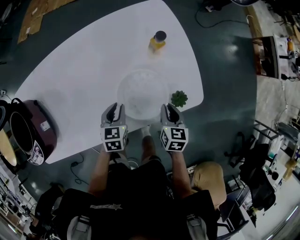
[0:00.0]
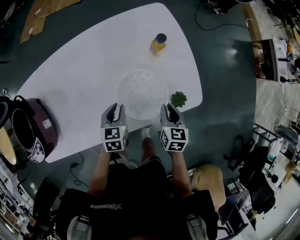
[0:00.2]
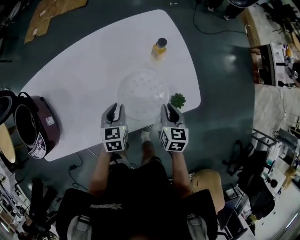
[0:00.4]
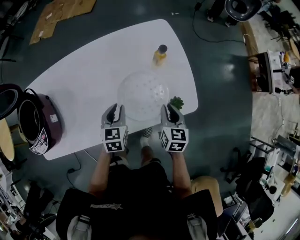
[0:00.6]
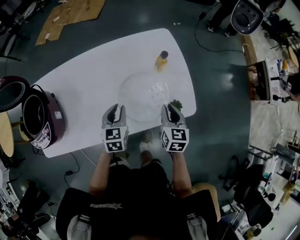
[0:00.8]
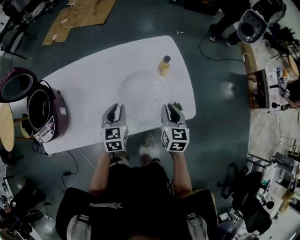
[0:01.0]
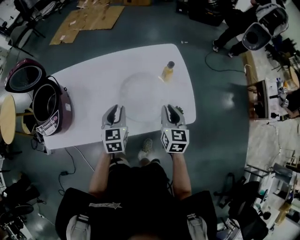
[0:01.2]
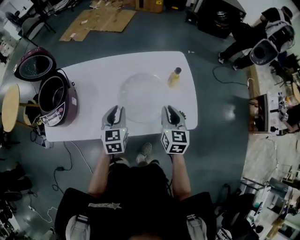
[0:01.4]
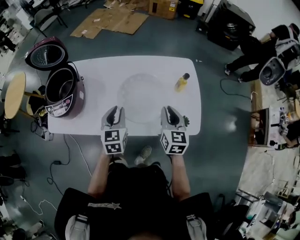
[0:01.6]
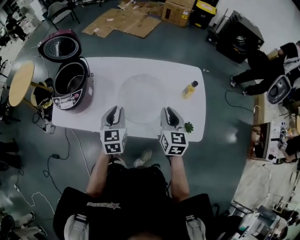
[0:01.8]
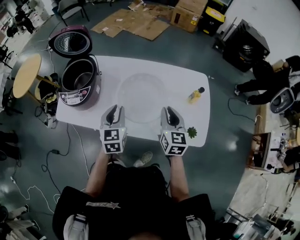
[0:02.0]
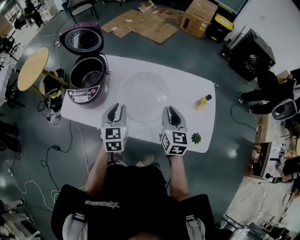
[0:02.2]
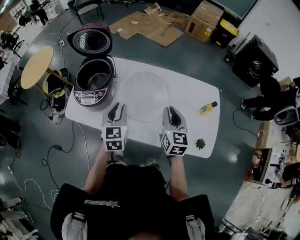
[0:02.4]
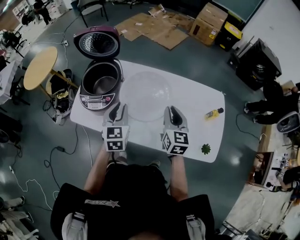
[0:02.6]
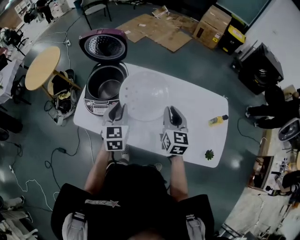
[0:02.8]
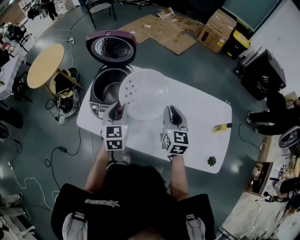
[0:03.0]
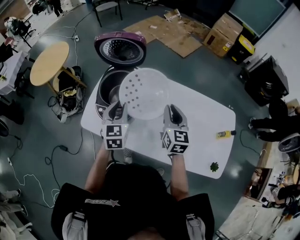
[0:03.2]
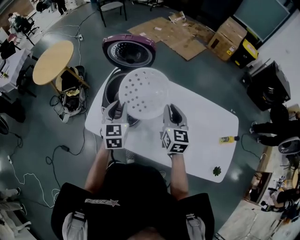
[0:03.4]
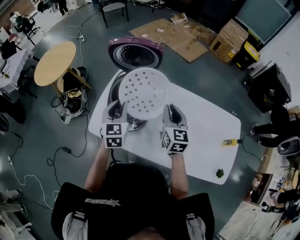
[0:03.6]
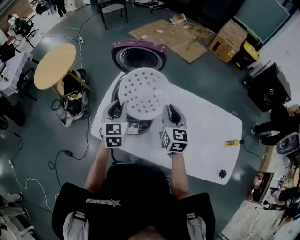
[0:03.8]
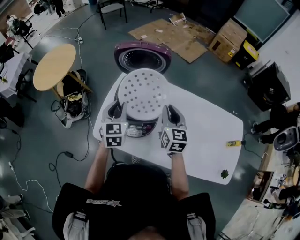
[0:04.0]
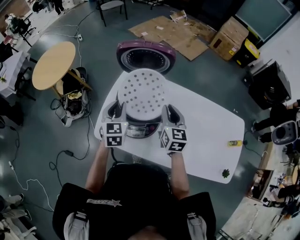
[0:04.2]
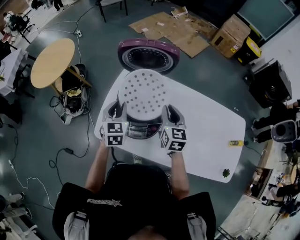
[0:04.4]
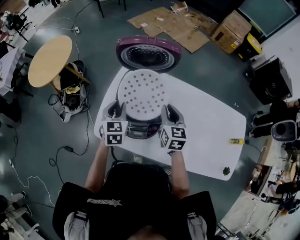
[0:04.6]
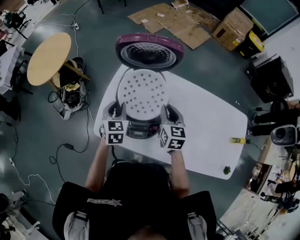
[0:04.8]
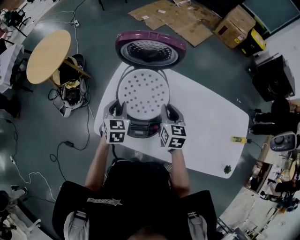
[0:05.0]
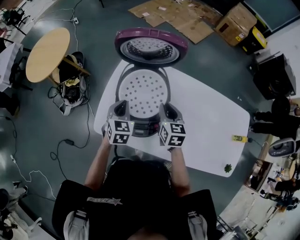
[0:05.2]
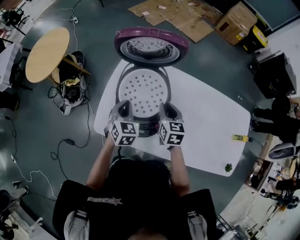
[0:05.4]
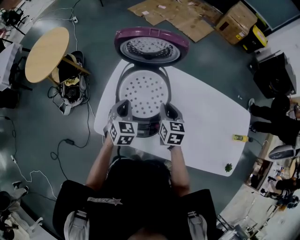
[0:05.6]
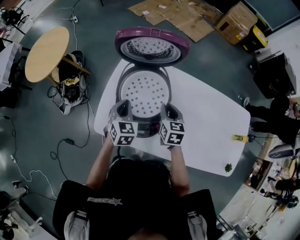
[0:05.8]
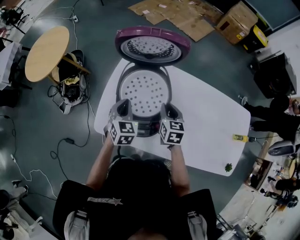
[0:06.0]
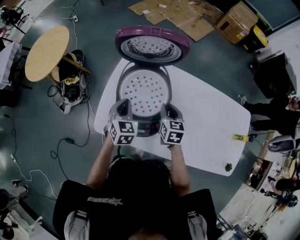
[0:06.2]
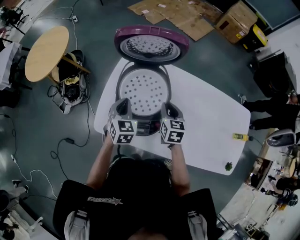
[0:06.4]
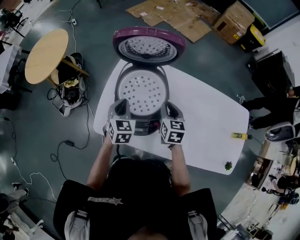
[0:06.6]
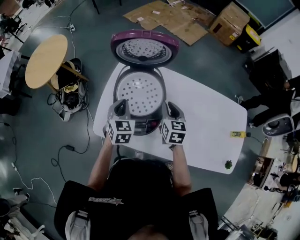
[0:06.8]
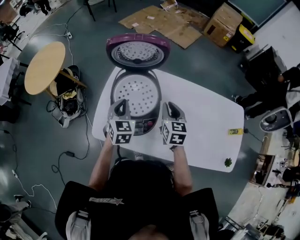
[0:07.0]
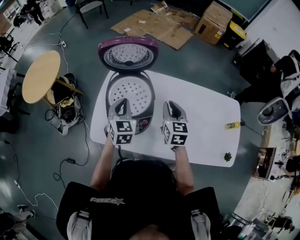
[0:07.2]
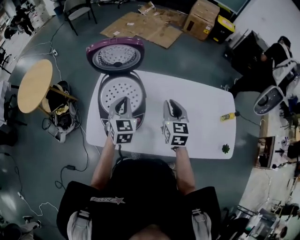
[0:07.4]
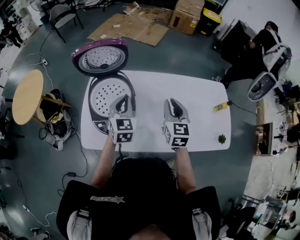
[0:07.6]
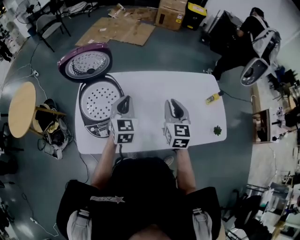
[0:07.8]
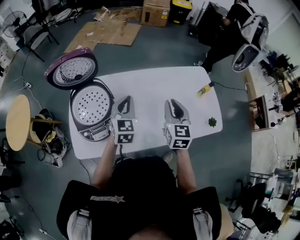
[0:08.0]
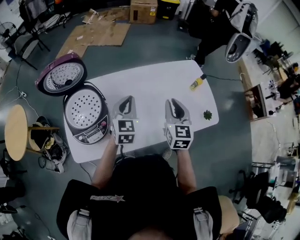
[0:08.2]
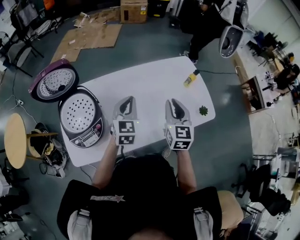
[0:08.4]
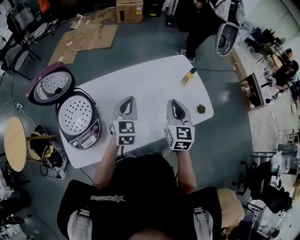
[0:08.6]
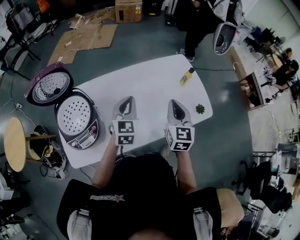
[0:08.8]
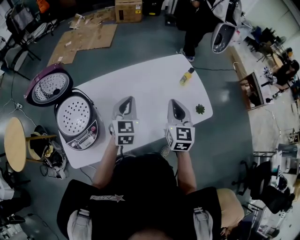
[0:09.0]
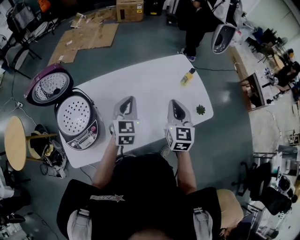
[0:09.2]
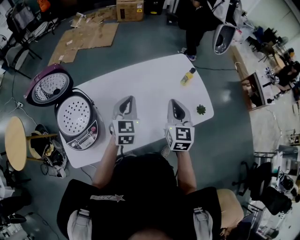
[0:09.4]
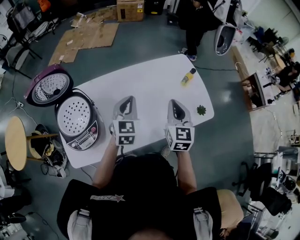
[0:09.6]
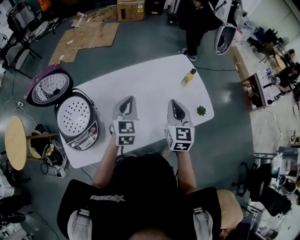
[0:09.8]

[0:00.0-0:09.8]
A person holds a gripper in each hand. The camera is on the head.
0.0 to 1.4 s: The grippers both shift upward by about 20 cm. The left gripper rotates approximately 30 degrees, while the right gripper changes its angle by about 30 degrees.
1.4 to 2.8 s: The left gripper shifts approximately 30 cm to the left, and swivels approximately 20 degrees; the right gripper shifts approximately 30 cm to the left and forward, and turns by roughly 20 degrees.
2.8 to 4.2 s: Both grippers move to the left and forward, roughly 25 cm.
4.2 to 5.6 s: Both grippers travel together downward, roughly 10 cm.
5.6 to 7.0 s: The left gripper moves some 5 cm; the right gripper is displaced upward by roughly 5 cm.
7.0 to 8.4 s: The right gripper moves approximately 35 cm, and swivels about 40 degrees. Meanwhile the left gripper changes place by roughly 35 cm, and changes its angle by roughly 40 degrees.
8.4 to 9.8 s: There are only small adjustments of the grippers.

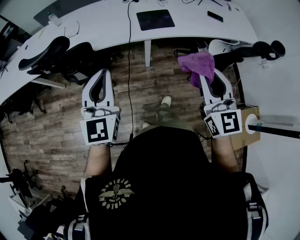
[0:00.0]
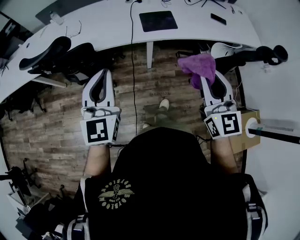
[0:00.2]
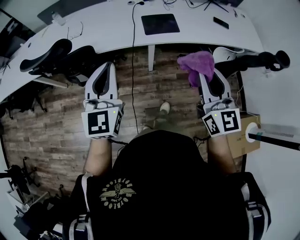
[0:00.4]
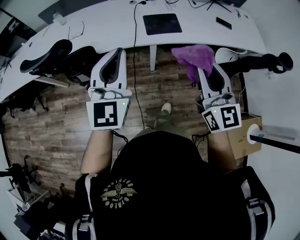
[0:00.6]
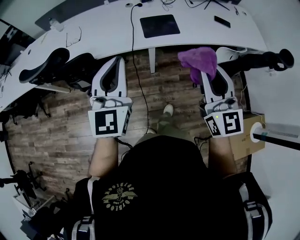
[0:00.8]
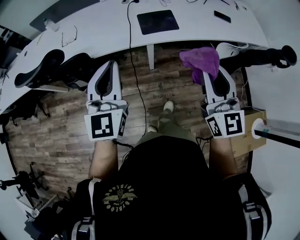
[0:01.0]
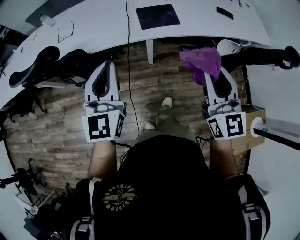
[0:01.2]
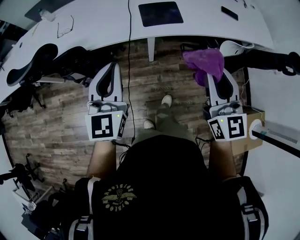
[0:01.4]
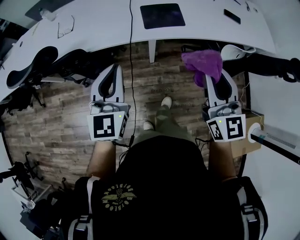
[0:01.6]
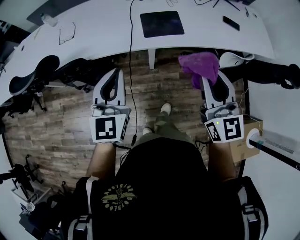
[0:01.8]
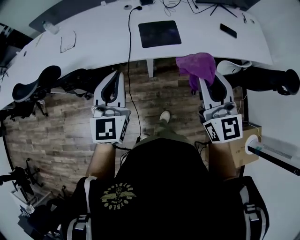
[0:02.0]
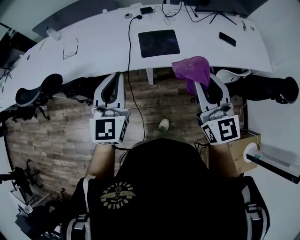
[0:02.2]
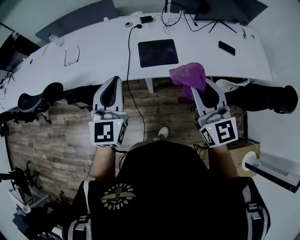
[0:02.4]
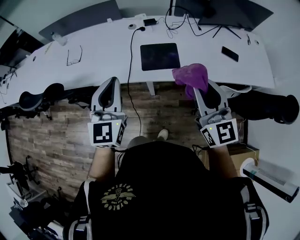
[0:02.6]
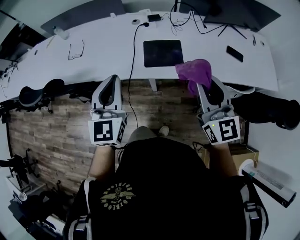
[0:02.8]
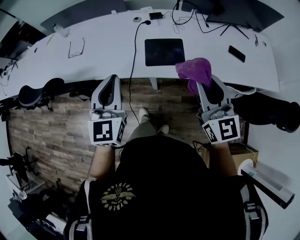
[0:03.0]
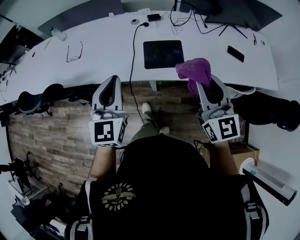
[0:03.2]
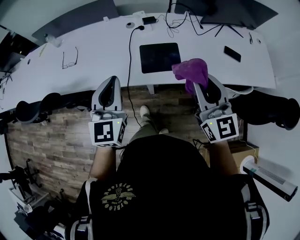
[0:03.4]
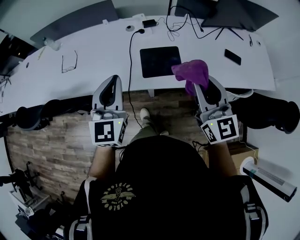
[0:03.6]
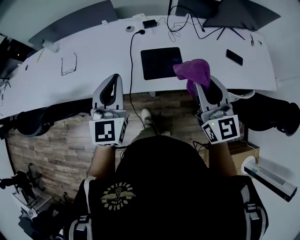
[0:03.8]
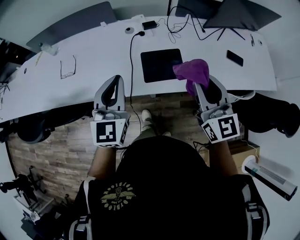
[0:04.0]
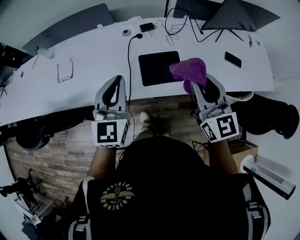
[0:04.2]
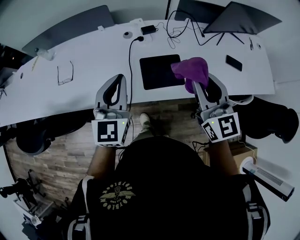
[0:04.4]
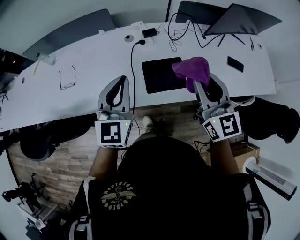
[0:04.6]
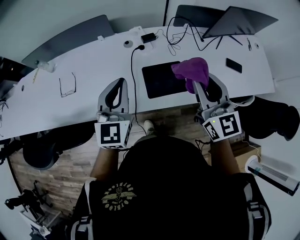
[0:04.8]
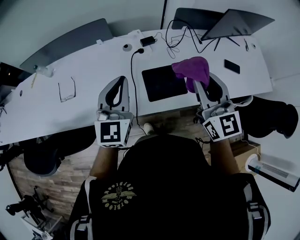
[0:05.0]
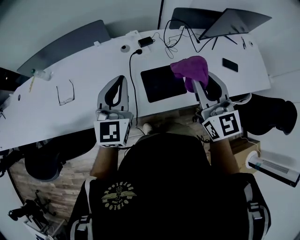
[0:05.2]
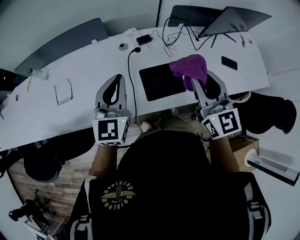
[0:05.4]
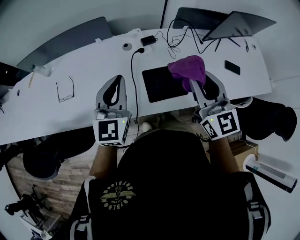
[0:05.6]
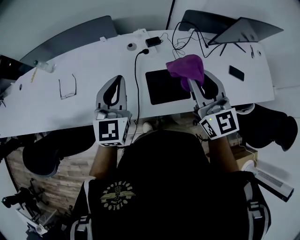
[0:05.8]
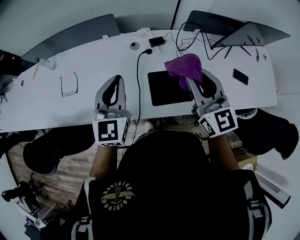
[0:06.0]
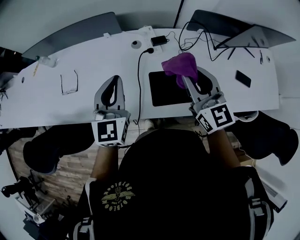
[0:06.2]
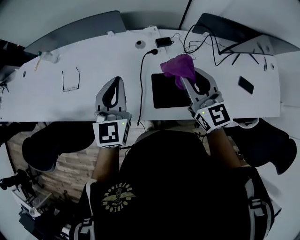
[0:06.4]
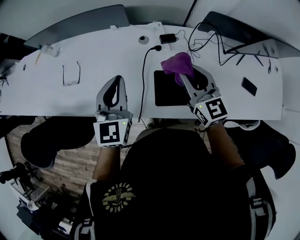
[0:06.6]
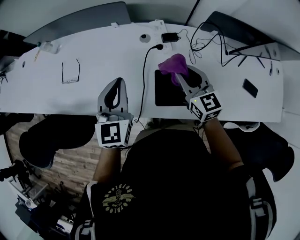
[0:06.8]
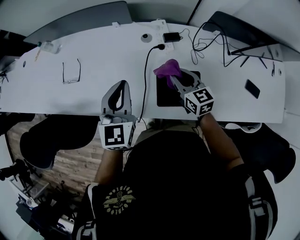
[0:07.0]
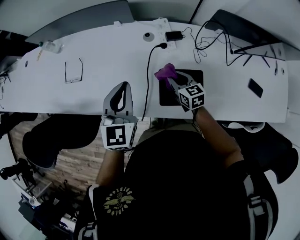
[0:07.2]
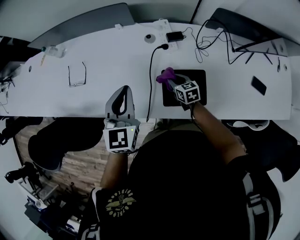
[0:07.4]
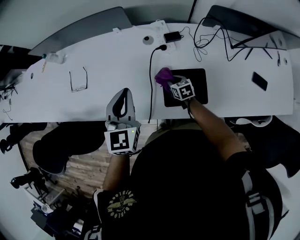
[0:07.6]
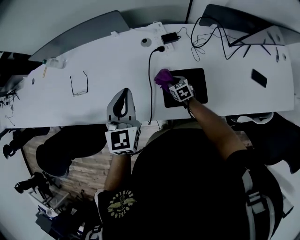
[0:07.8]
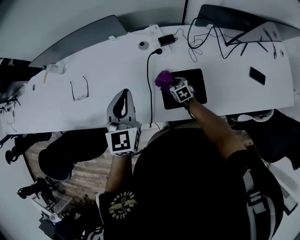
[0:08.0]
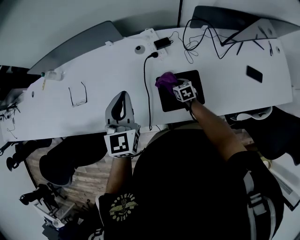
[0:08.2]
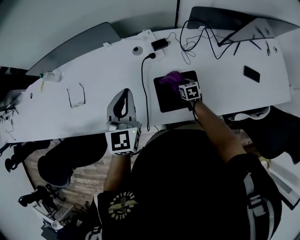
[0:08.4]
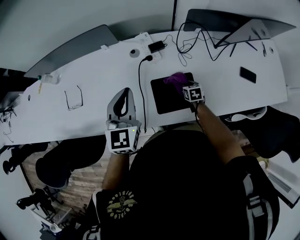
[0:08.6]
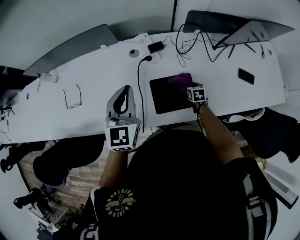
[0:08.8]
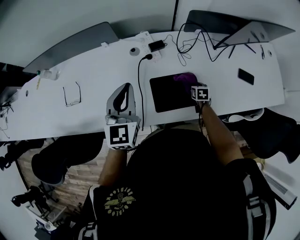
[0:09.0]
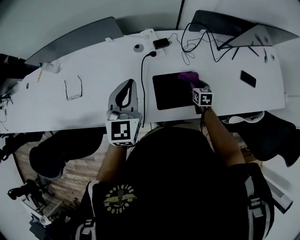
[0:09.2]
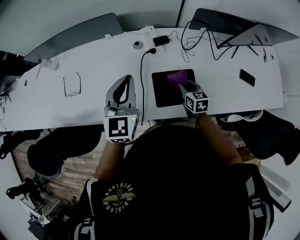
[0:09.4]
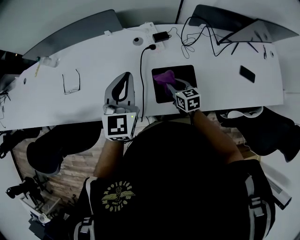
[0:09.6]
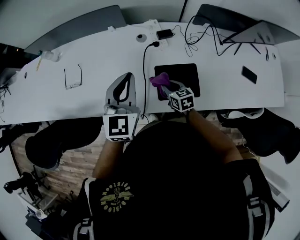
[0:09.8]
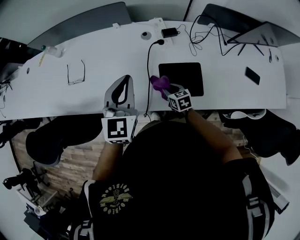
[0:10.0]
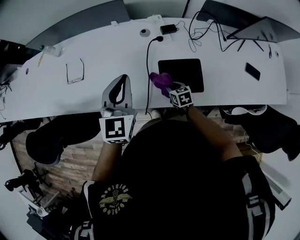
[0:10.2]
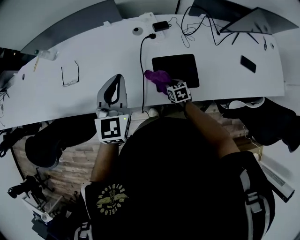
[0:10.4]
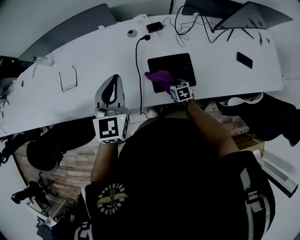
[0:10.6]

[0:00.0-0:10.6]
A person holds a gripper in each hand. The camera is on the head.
0.0 to 1.6 s: The two grippers go some 15 cm forward and downward.
1.6 to 3.0 s: Both grippers move forward, approximately 15 cm.
3.0 to 4.6 s: Both grippers travel together forward, some 15 cm.
4.6 to 6.0 s: The left gripper heads forward, covering about 10 cm; the right gripper heads forward and to the left, covering roughly 10 cm.
6.0 to 7.6 s: The left gripper goes about 5 cm downward, while the right gripper shifts approximately 40 cm downward, and tilts its fingers roughly 40 degrees downward.
7.6 to 9.0 s: The right gripper moves approximately 25 cm, and rotates some 30 degrees. Meanwhile the left gripper ends up roughly 5 cm from where it was.
9.0 to 10.6 s: The right gripper shifts roughly 15 cm to the left and backward, while the left gripper changes place by some 5 cm.

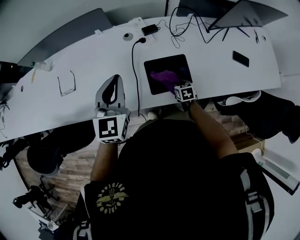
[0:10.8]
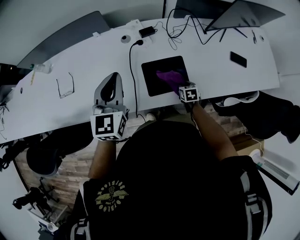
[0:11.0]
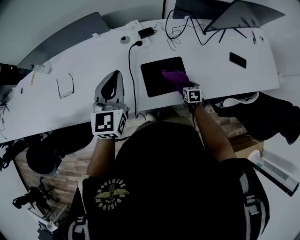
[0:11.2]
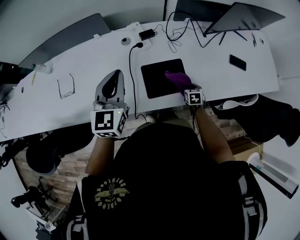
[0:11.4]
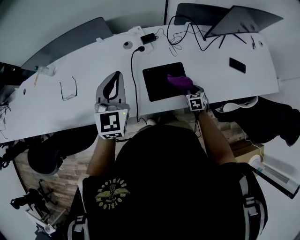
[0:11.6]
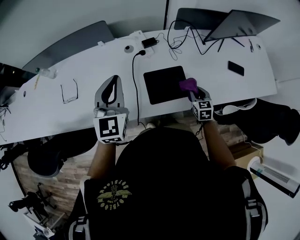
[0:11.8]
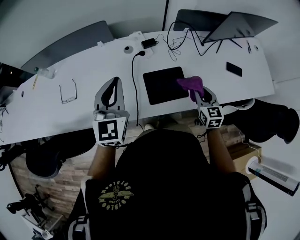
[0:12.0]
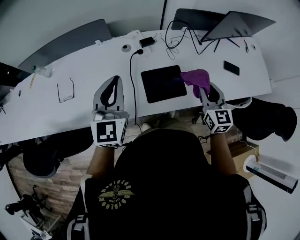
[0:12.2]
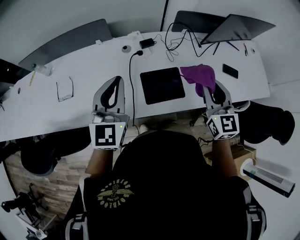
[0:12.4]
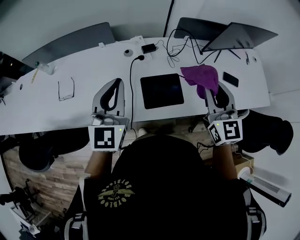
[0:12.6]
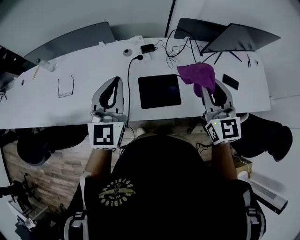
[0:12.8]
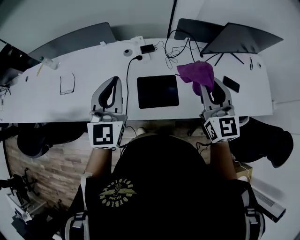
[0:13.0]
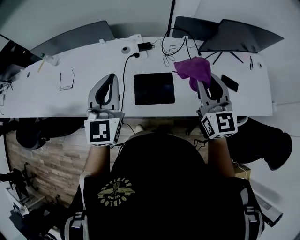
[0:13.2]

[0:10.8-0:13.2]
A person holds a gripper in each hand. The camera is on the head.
10.8 to 12.0 s: The right gripper heads upward, covering roughly 20 cm, and angles its fingers upward, by about 30 degrees.
12.0 to 13.2 s: The left gripper goes roughly 10 cm to the right and upward. The right gripper shifts about 25 cm upward, and rotates some 30 degrees.

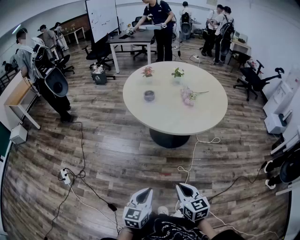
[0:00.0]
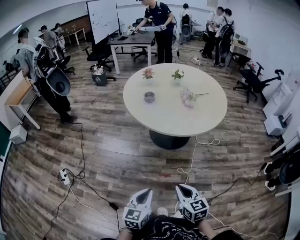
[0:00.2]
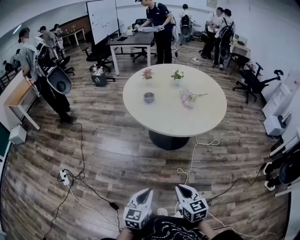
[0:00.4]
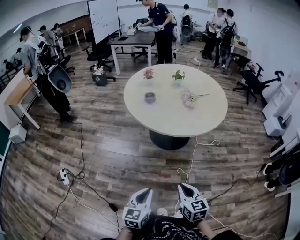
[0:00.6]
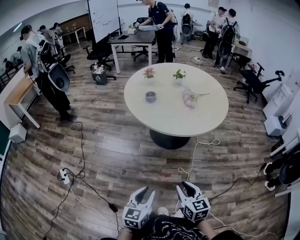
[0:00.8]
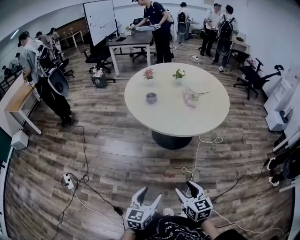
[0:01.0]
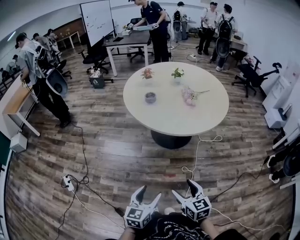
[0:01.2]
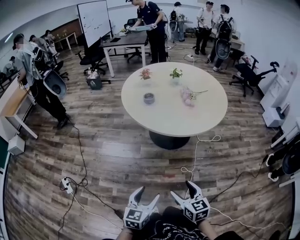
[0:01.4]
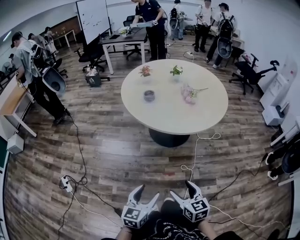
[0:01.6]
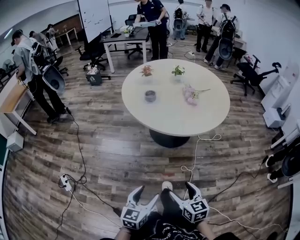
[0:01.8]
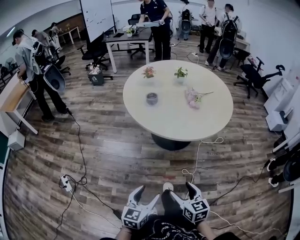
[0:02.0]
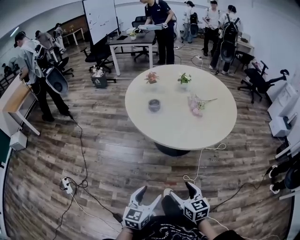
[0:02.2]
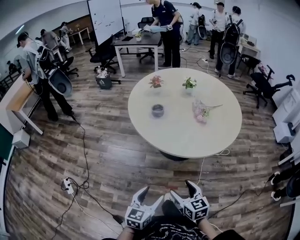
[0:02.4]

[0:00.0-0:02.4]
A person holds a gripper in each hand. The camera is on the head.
0.0 to 1.2 s: The right gripper opens; the left gripper opens up.
1.2 to 2.4 s: Both grippers travel together forward, about 15 cm.
